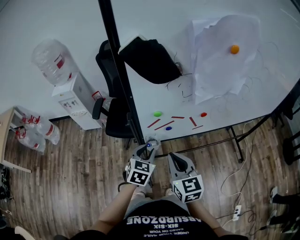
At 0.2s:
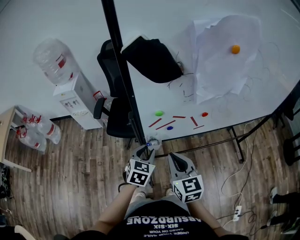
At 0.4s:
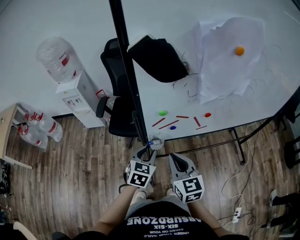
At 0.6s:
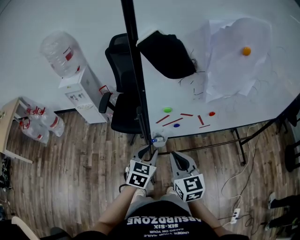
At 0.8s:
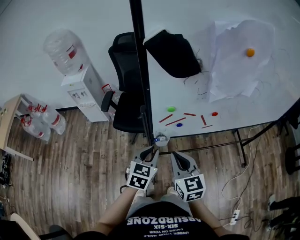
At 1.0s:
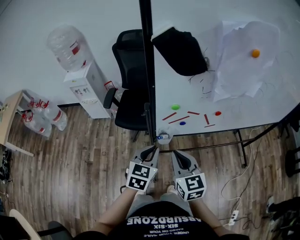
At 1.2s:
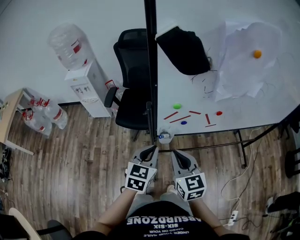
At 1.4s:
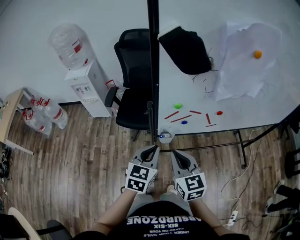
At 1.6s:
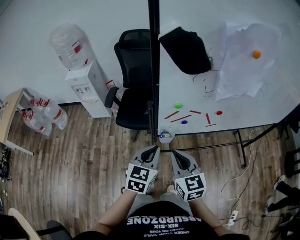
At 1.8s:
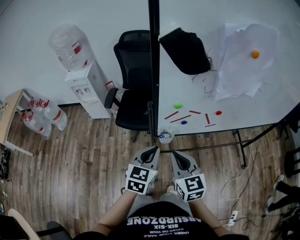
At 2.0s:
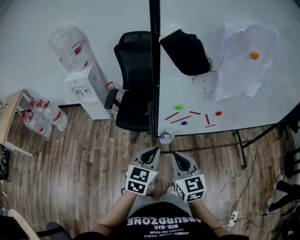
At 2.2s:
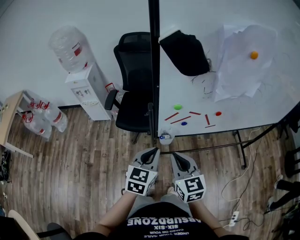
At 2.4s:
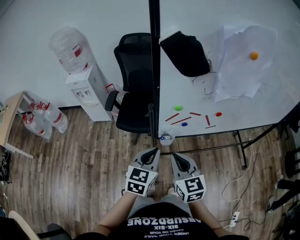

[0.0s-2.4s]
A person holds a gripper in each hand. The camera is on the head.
0.0s to 1.2s: The left gripper heads upward, covering approximately 5 cm, and closes its fingers.
1.2s to 2.4s: There are only small adjustments of the grippers.

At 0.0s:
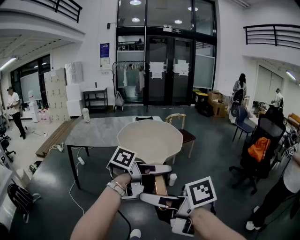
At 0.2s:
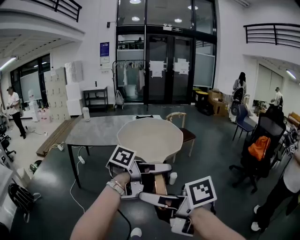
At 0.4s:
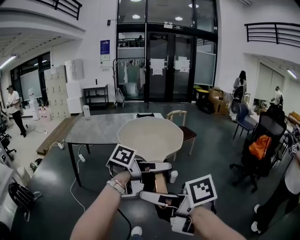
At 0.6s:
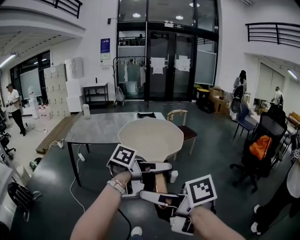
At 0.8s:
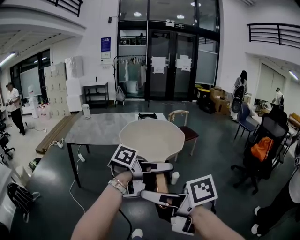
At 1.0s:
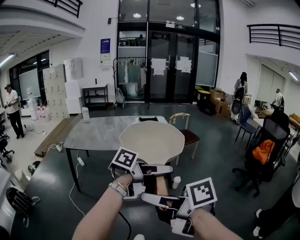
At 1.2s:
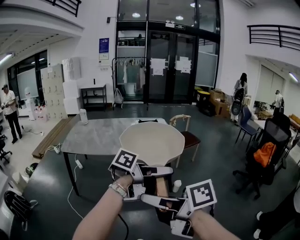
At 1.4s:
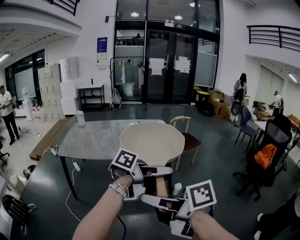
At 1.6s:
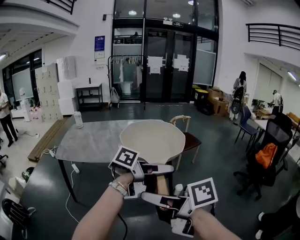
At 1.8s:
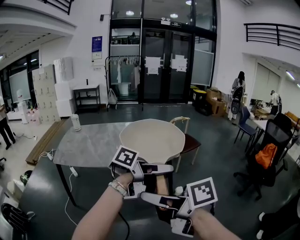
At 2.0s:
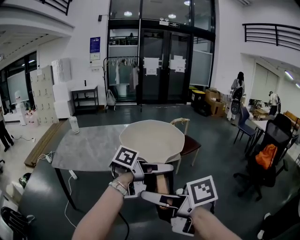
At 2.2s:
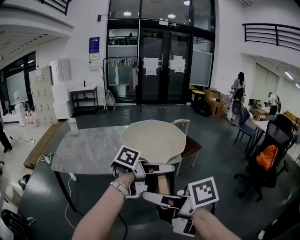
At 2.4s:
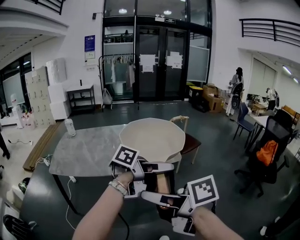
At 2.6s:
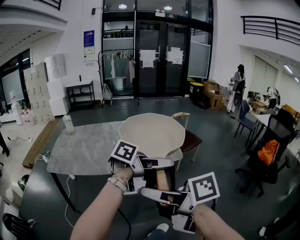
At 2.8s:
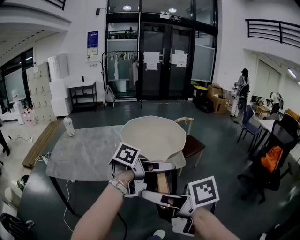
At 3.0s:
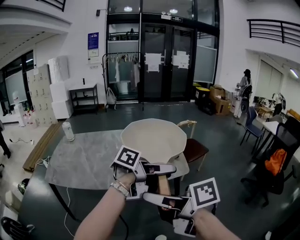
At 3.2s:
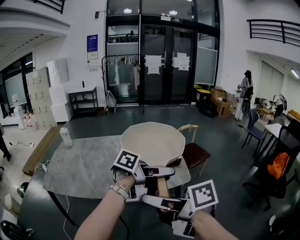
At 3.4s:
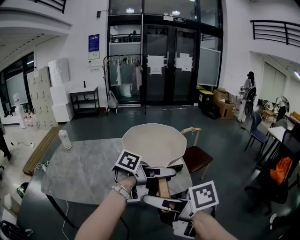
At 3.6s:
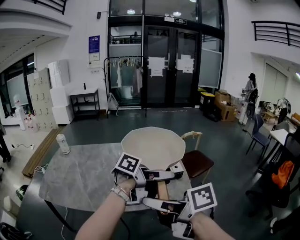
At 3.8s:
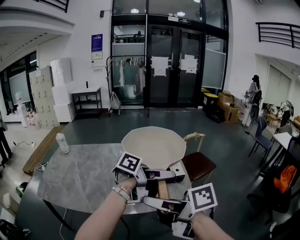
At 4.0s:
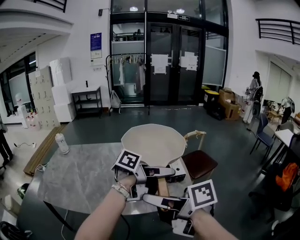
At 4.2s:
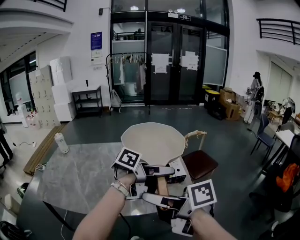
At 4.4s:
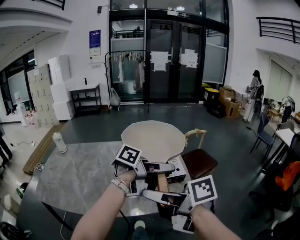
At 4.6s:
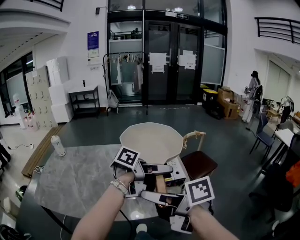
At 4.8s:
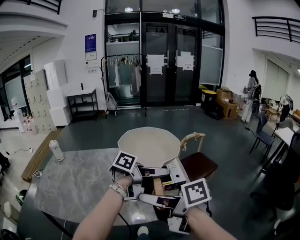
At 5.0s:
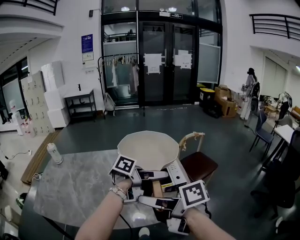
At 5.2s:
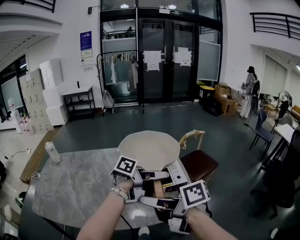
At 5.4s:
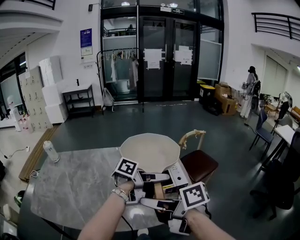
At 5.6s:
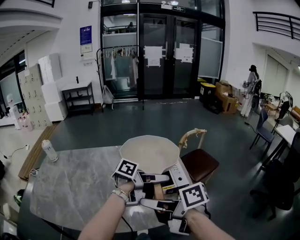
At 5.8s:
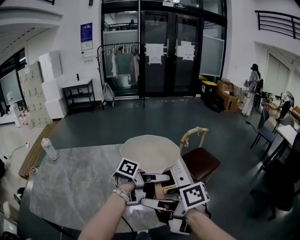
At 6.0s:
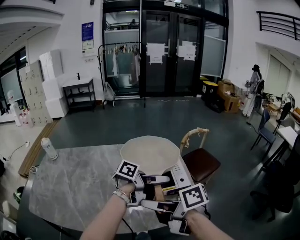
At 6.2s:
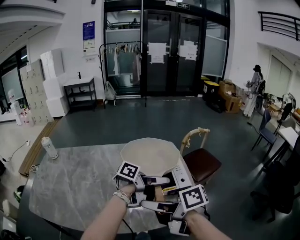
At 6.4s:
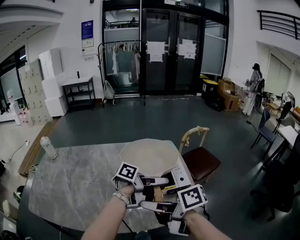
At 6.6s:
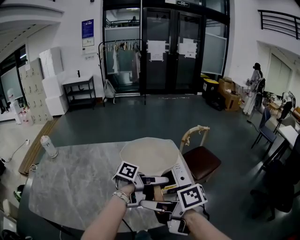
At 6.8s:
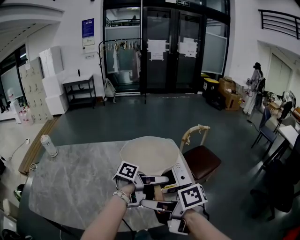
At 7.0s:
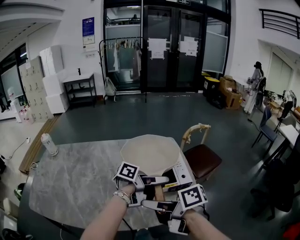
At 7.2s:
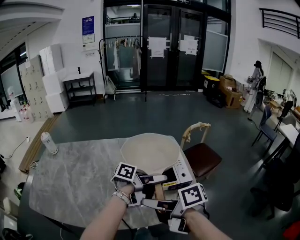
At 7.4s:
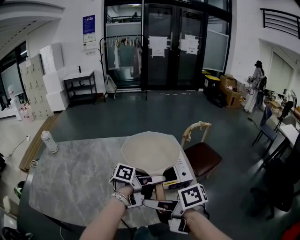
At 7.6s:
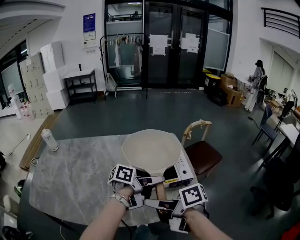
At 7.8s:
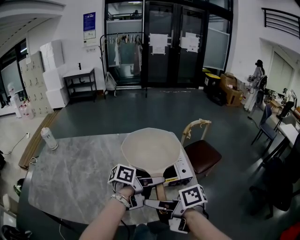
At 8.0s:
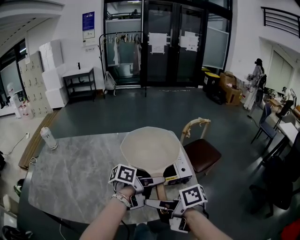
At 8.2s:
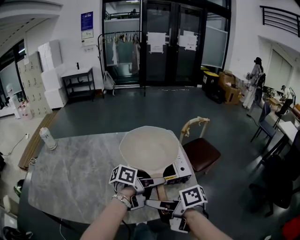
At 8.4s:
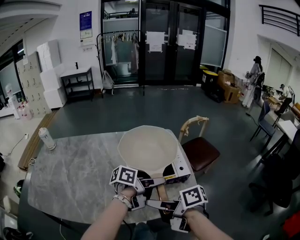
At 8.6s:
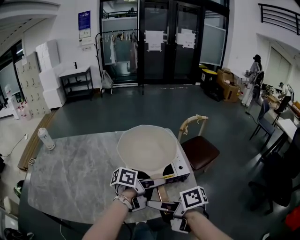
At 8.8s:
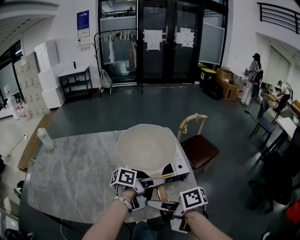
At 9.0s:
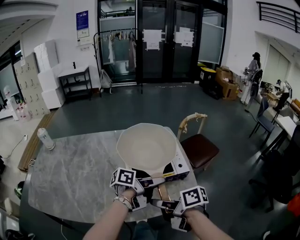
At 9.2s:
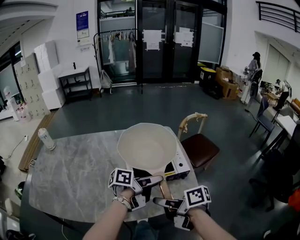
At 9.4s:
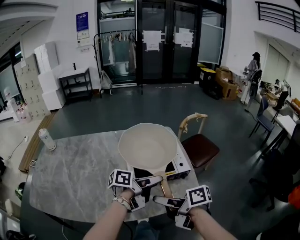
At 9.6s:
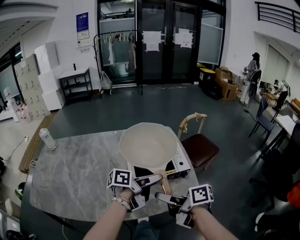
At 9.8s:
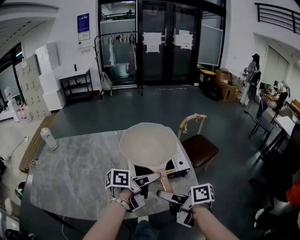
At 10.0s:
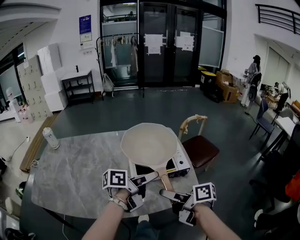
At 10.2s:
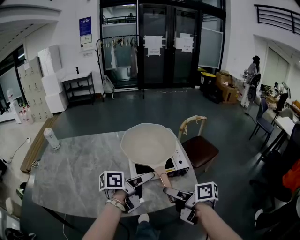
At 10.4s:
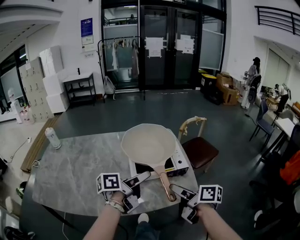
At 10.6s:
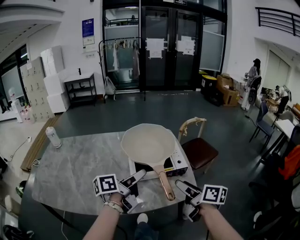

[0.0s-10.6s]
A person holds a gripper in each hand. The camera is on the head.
0.0s to 1.6s: The left gripper shifts by roughly 20 cm, while the right gripper ends up about 20 cm from where it was.
1.6s to 3.0s: The right gripper ends up approximately 20 cm from where it was. Meanwhile the left gripper moves some 20 cm.
3.0s to 4.6s: The right gripper moves roughly 25 cm; the left gripper moves roughly 25 cm.
4.6s to 6.0s: Both grippers move downward, some 10 cm.
6.0s to 7.6s: The left gripper moves some 5 cm, while the right gripper travels downward by some 5 cm.
7.6s to 9.0s: The right gripper shifts by roughly 5 cm.
9.0s to 10.6s: The right gripper changes place by approximately 15 cm, turns by roughly 30 degrees, and opens; the left gripper ends up roughly 10 cm from where it was, and changes its angle by approximately 30 degrees.

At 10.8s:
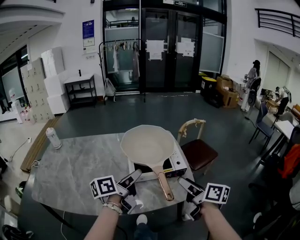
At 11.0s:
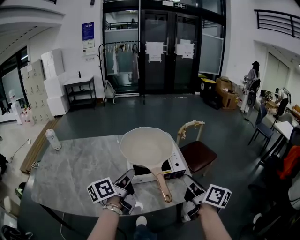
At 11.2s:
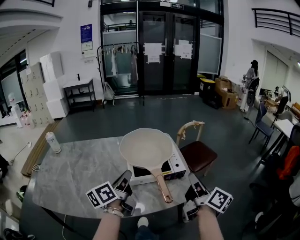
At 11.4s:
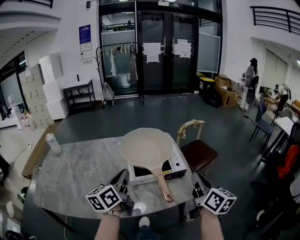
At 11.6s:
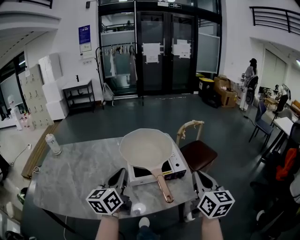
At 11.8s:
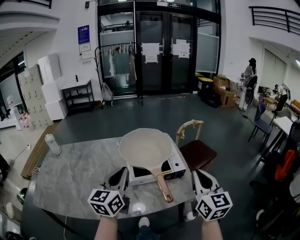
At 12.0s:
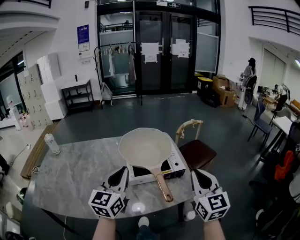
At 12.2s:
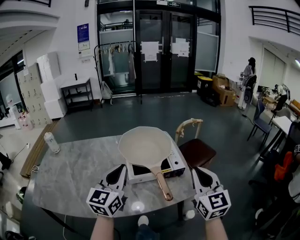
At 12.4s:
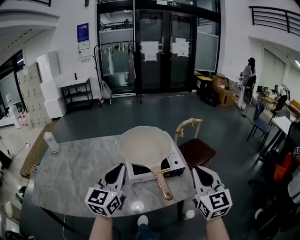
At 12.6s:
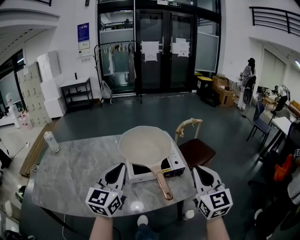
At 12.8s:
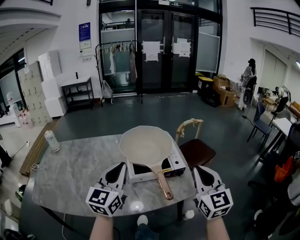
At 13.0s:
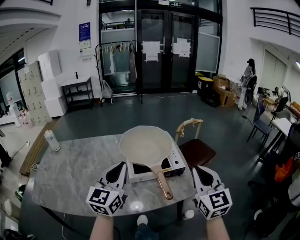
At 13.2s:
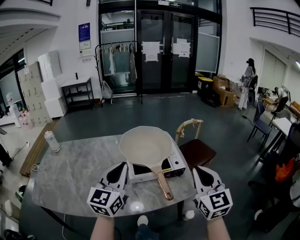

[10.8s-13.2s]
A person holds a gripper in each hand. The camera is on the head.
10.8s to 12.0s: Both grippers travel together upward, roughly 5 cm. The right gripper rotates around the line of its fingers by approximately 60 degrees, counterclockwise from behind, and closes its fingers. The left gripper twists roughly 60 degrees clockwise, seen from behind, and closes its fingers.
12.0s to 13.2s: The grippers stay close to where they were, moving slightly.

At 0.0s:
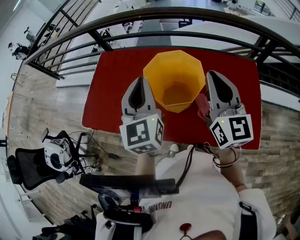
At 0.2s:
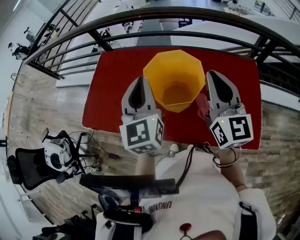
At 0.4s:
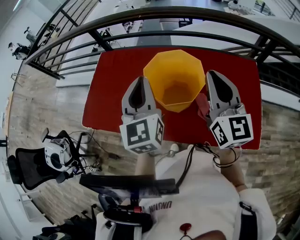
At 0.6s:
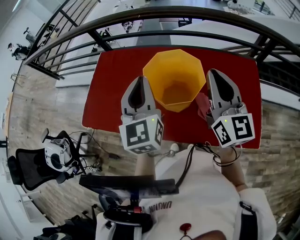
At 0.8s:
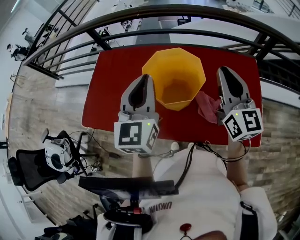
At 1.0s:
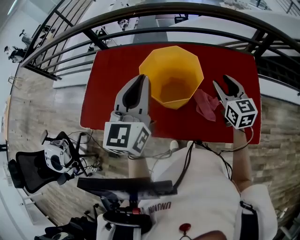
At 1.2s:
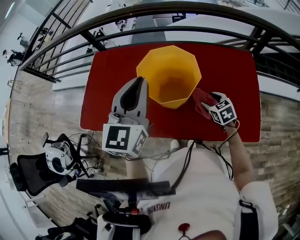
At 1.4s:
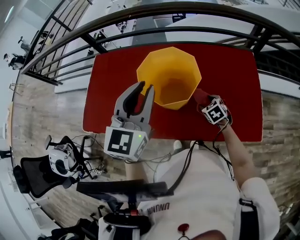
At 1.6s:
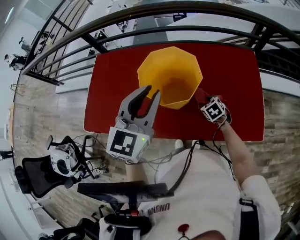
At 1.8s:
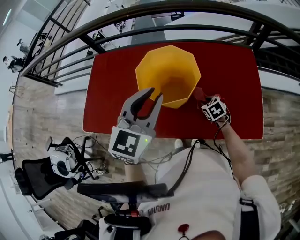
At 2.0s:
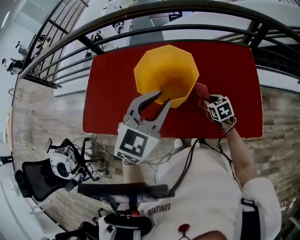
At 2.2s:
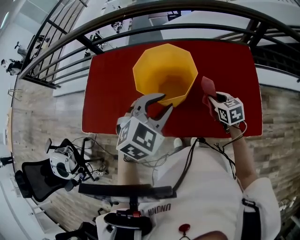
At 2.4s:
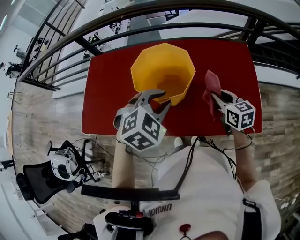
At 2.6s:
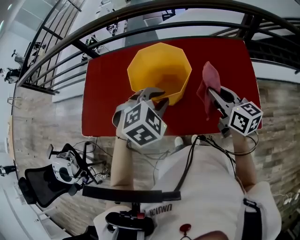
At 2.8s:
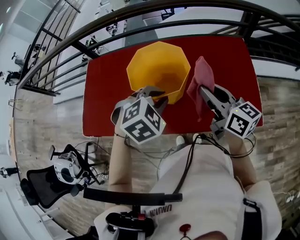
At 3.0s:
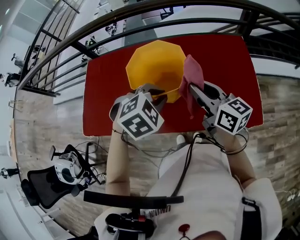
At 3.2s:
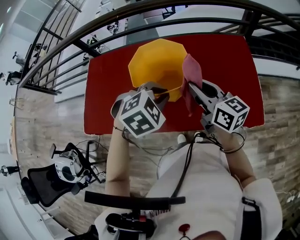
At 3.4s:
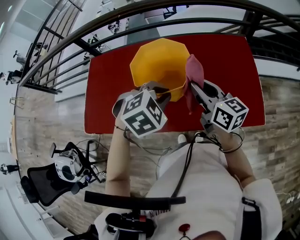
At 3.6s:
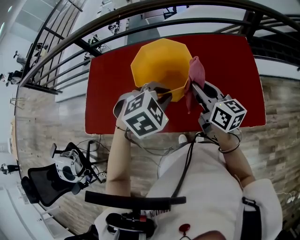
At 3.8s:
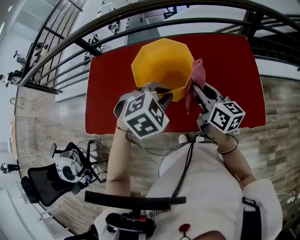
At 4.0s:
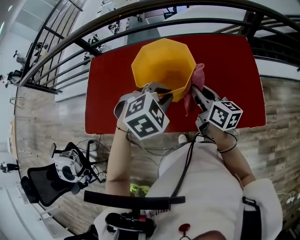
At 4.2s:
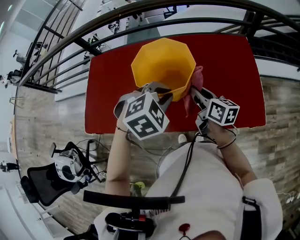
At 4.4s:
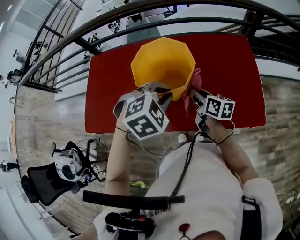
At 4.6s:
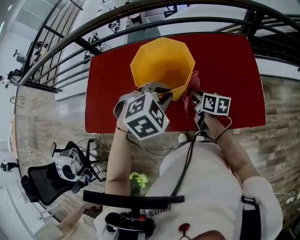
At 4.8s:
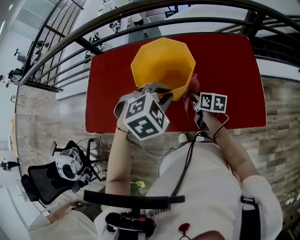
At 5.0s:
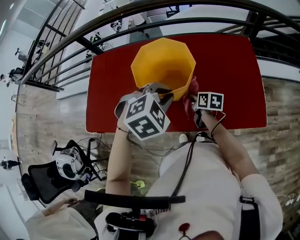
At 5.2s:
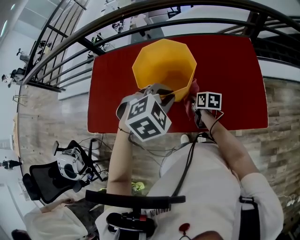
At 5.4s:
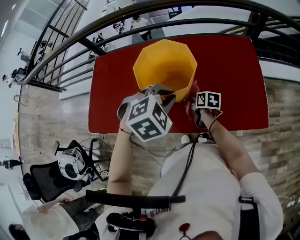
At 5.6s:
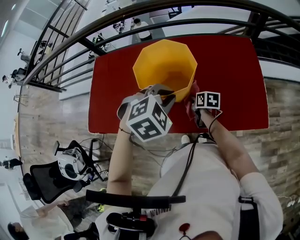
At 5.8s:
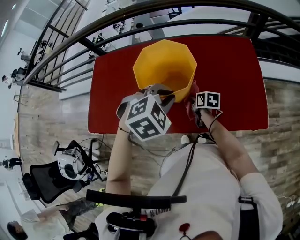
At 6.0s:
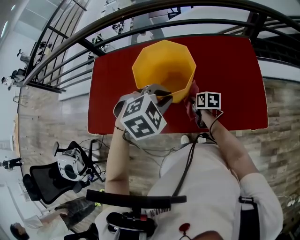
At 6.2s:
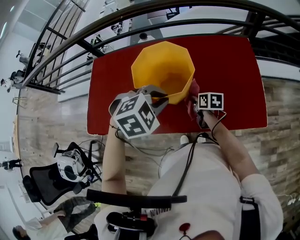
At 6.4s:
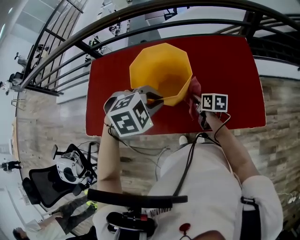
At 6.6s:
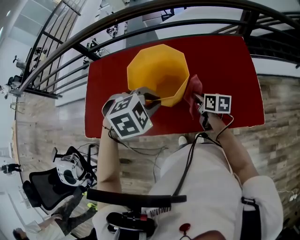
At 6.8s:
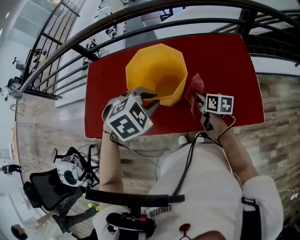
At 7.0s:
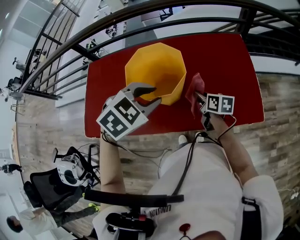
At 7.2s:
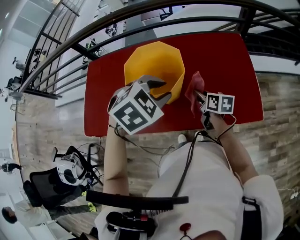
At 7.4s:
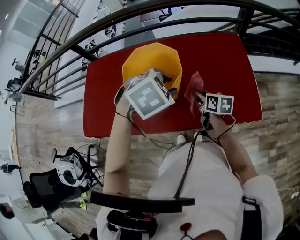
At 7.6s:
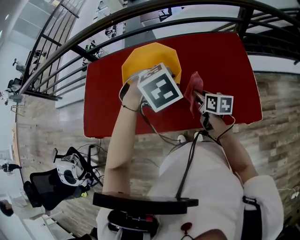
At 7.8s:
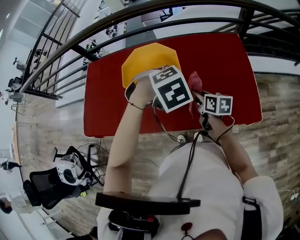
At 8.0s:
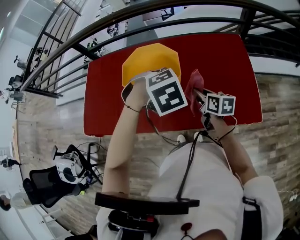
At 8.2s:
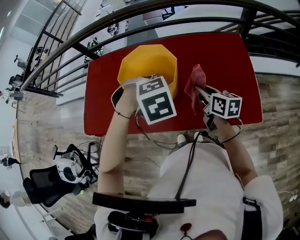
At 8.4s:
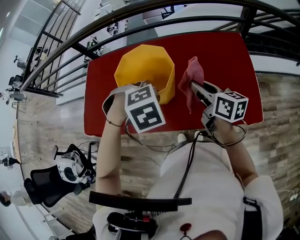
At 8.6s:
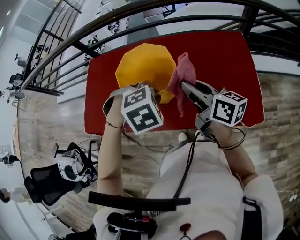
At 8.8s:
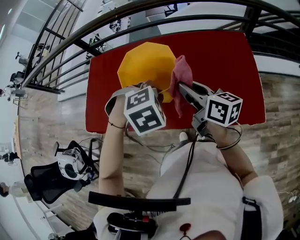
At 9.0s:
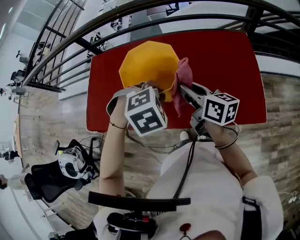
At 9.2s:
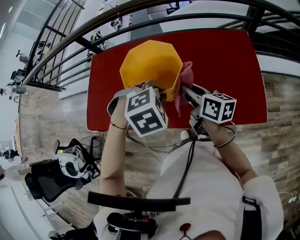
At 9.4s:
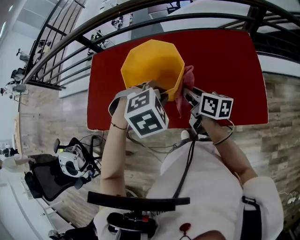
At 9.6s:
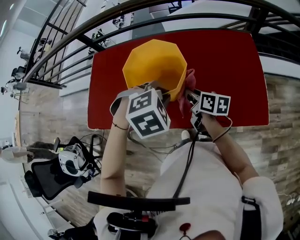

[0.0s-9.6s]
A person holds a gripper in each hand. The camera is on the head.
0.0s to 1.6s: The right gripper goes some 40 cm downward, tilts its fingers approximately 60 degrees downward, and opens its fingers, while the left gripper heads to the right, covering approximately 5 cm, and changes its angle by approximately 30 degrees.
1.6s to 3.2s: The left gripper shifts approximately 15 cm downward and to the right, and tips its fingers downward by approximately 50 degrees; the right gripper shifts approximately 25 cm upward, tips its fingers upward by approximately 50 degrees, and closes up.
3.2s to 4.8s: The right gripper goes roughly 20 cm downward, and turns by approximately 30 degrees.
6.4s to 8.0s: The right gripper goes some 5 cm upward. Meanwhile the left gripper heads to the right, covering roughly 10 cm.
8.0s to 9.6s: The left gripper ends up about 5 cm from where it was; the right gripper reaches approximately 15 cm upward, then returns.
